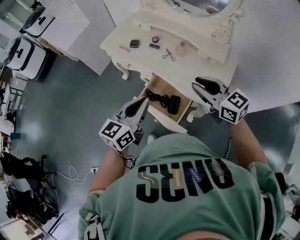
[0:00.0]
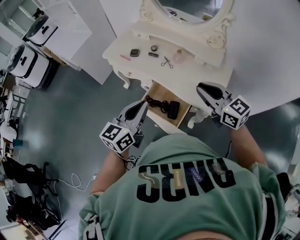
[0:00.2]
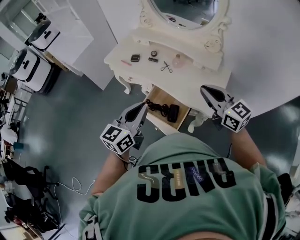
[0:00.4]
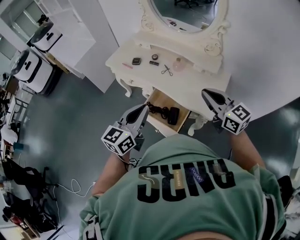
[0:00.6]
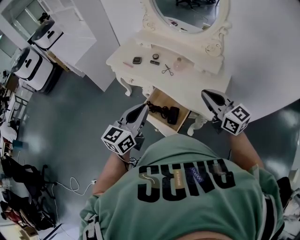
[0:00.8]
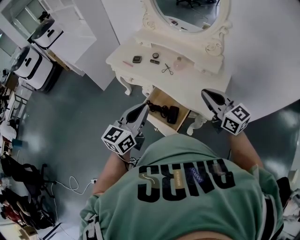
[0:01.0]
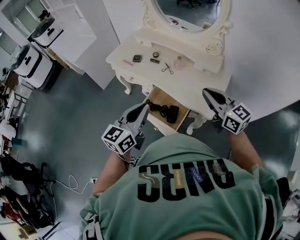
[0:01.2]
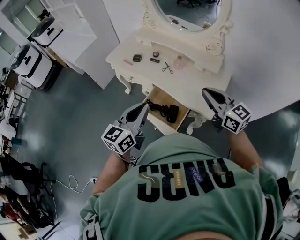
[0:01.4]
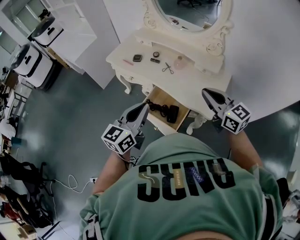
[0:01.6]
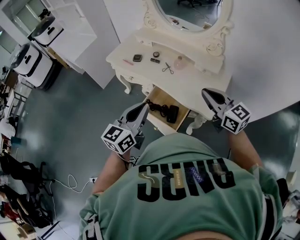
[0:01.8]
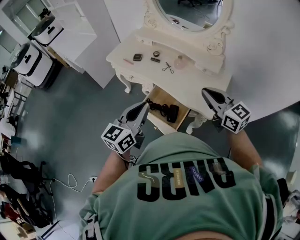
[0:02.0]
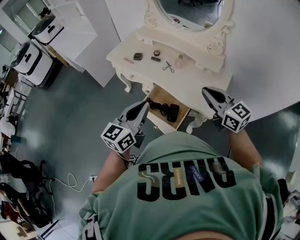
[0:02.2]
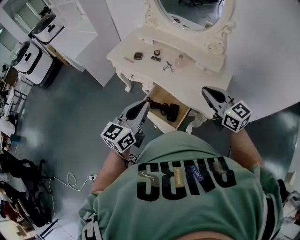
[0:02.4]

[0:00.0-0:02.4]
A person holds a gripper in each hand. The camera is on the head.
0:00.0 to 0:01.2: The right gripper goes approximately 5 cm to the right. Meanwhile the left gripper moves roughly 5 cm.
0:01.2 to 0:02.4: Both grippers stay about where they are.

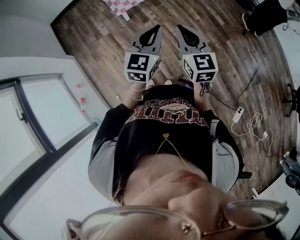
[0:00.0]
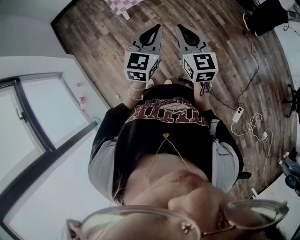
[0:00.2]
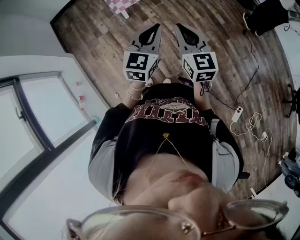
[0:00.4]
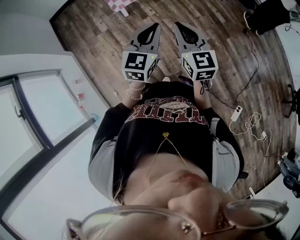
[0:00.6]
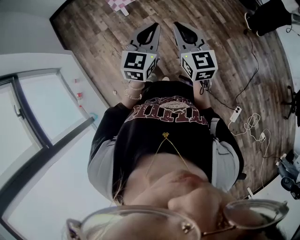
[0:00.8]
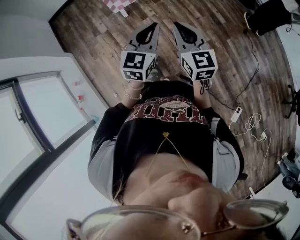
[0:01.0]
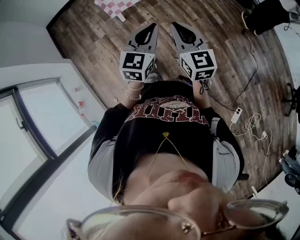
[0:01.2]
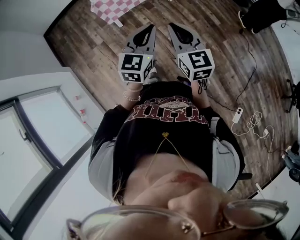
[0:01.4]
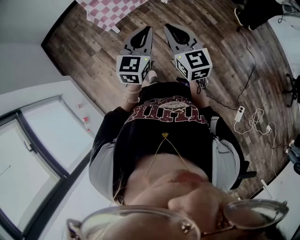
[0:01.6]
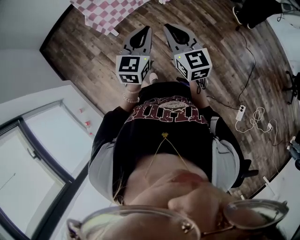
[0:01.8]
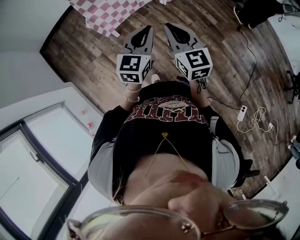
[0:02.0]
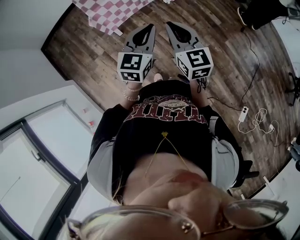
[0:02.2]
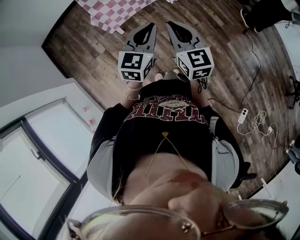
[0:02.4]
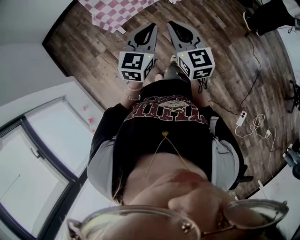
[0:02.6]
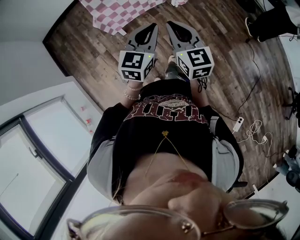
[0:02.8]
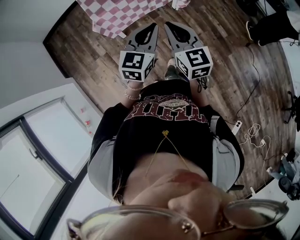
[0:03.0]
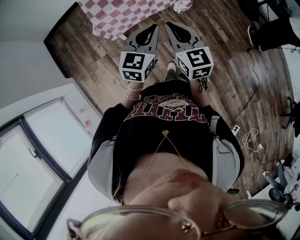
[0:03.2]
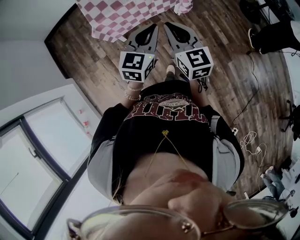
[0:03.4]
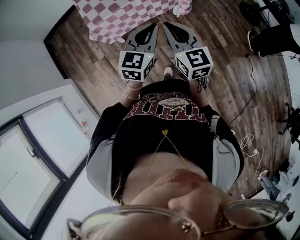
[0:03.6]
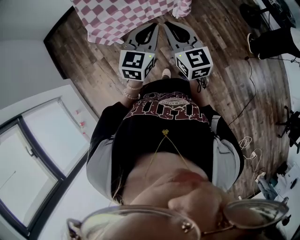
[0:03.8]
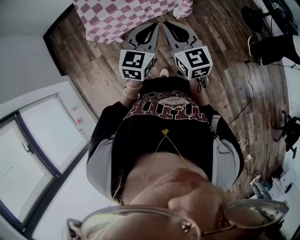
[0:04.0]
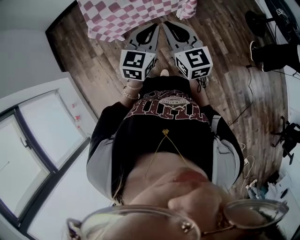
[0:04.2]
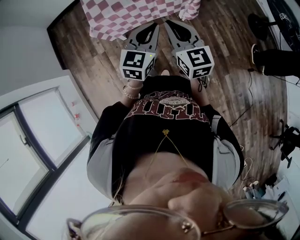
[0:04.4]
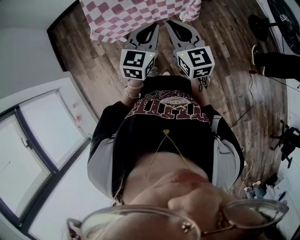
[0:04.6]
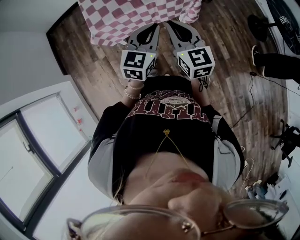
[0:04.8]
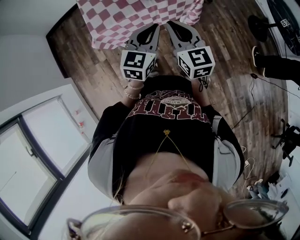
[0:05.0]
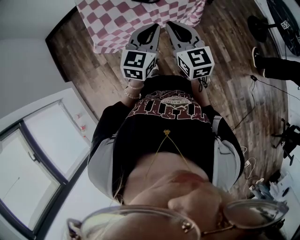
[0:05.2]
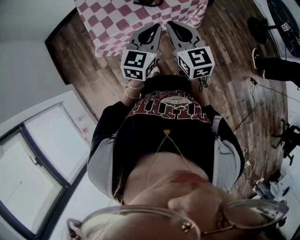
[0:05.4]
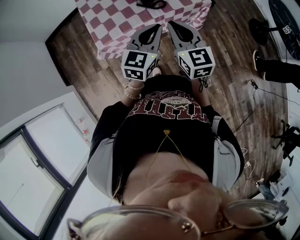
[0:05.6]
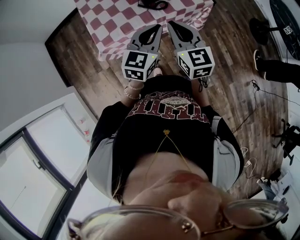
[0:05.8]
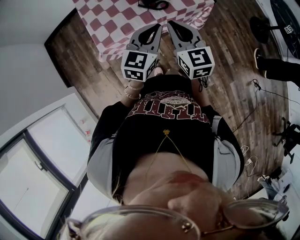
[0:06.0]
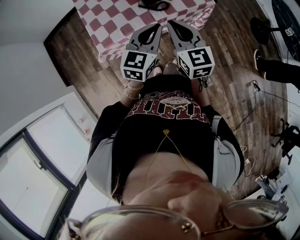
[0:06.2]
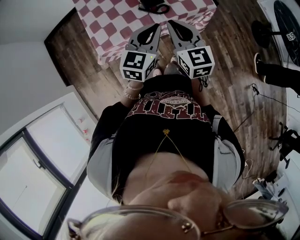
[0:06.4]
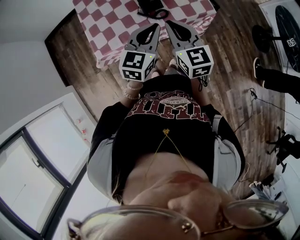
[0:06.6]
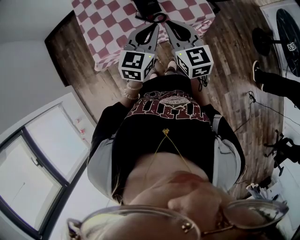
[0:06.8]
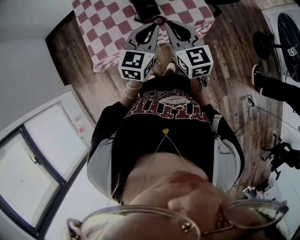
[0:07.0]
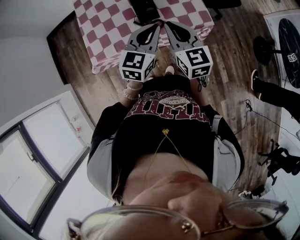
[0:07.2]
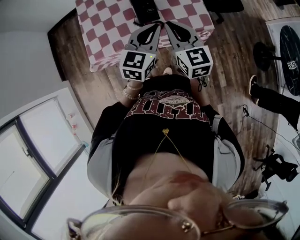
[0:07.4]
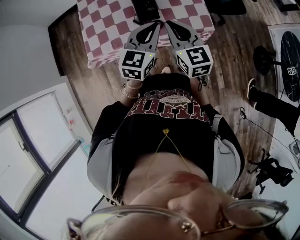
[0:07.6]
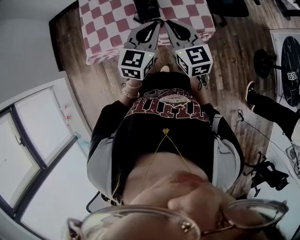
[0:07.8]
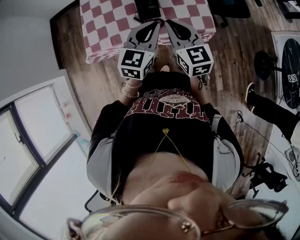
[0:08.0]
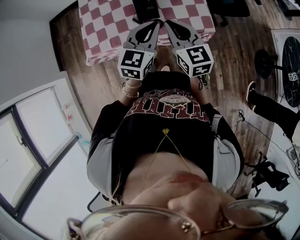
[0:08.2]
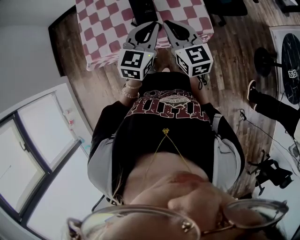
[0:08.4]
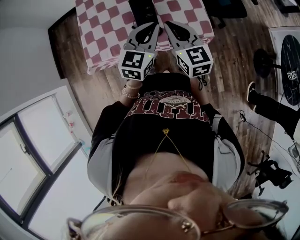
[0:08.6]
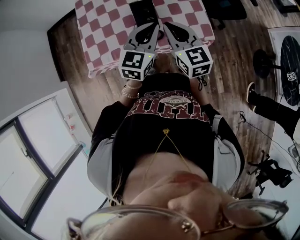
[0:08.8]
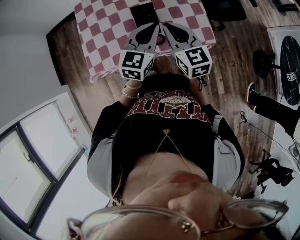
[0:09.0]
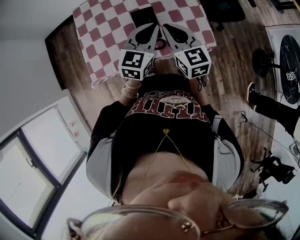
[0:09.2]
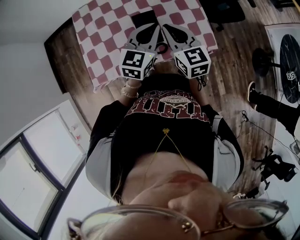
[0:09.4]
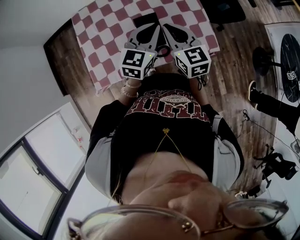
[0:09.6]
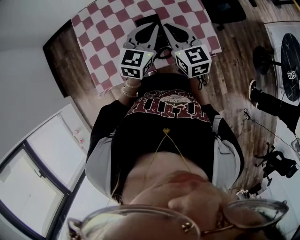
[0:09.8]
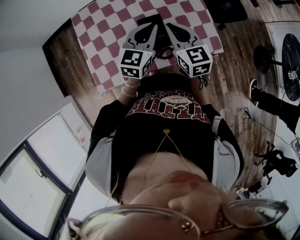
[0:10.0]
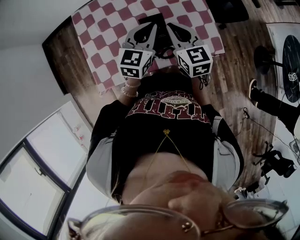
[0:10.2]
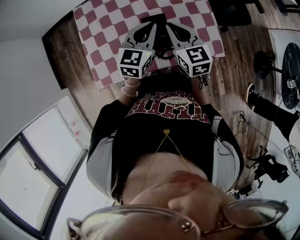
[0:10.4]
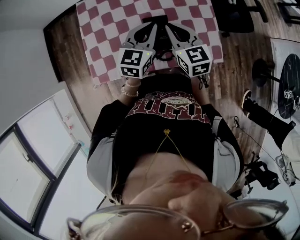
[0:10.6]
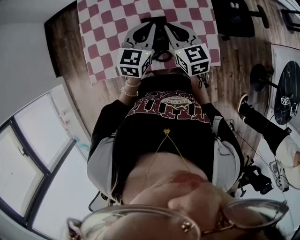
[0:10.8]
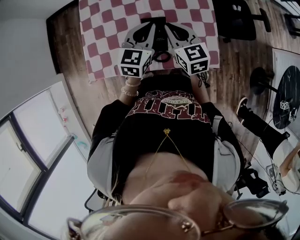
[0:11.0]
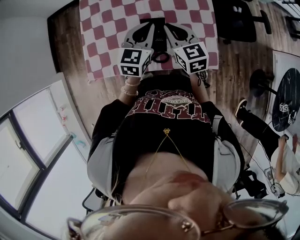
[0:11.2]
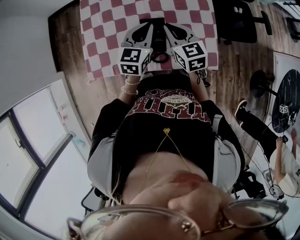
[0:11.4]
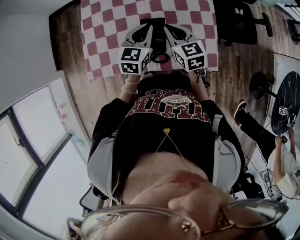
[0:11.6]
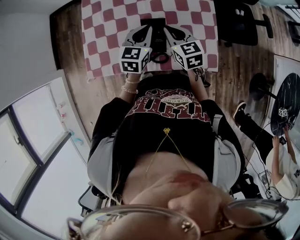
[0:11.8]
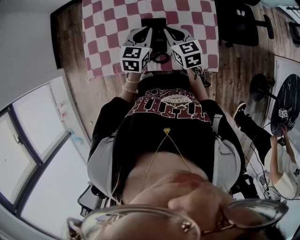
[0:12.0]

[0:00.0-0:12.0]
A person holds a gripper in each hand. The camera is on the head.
0:00.0 to 0:01.6: Both grippers travel together forward, roughly 15 cm.
0:01.6 to 0:03.0: The two grippers go approximately 20 cm forward.
0:03.0 to 0:04.4: The grippers both shift forward and to the right by roughly 15 cm.
0:04.4 to 0:06.0: Both grippers travel together forward and to the left, approximately 20 cm.
0:06.0 to 0:07.6: Both grippers move forward and to the right, about 15 cm.
0:07.6 to 0:09.0: The two grippers go some 10 cm forward.
0:09.0 to 0:10.4: Both grippers move forward and to the left, approximately 15 cm.
0:10.4 to 0:12.0: The two grippers go some 10 cm downward.

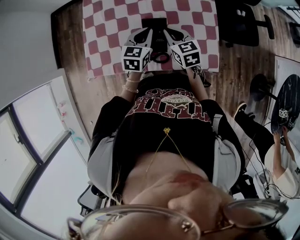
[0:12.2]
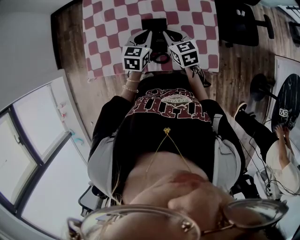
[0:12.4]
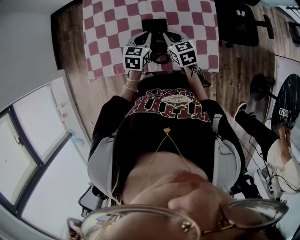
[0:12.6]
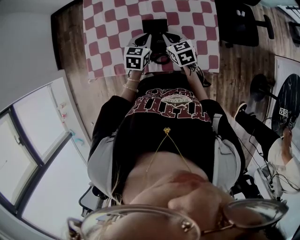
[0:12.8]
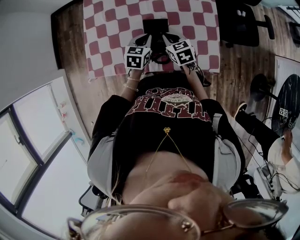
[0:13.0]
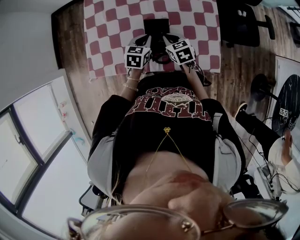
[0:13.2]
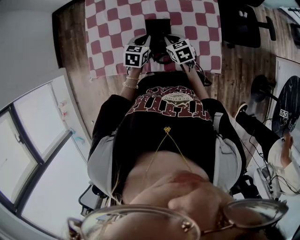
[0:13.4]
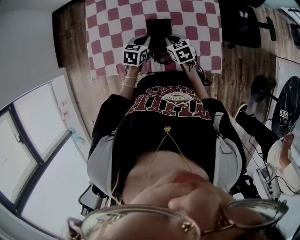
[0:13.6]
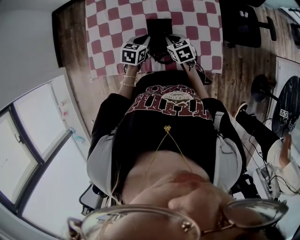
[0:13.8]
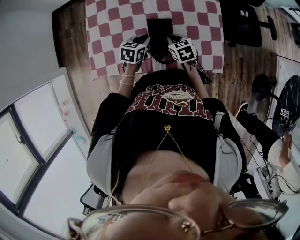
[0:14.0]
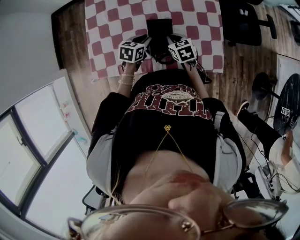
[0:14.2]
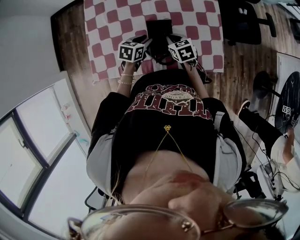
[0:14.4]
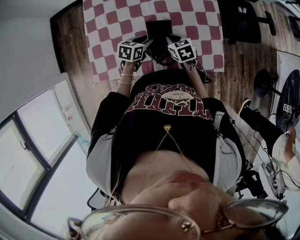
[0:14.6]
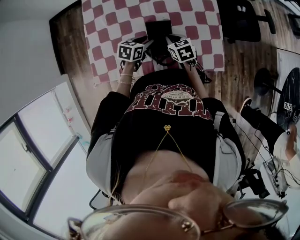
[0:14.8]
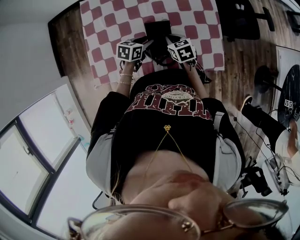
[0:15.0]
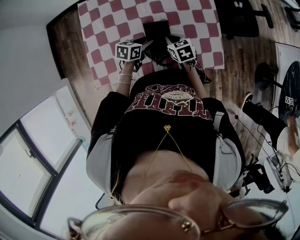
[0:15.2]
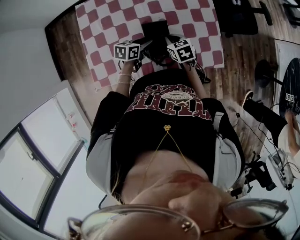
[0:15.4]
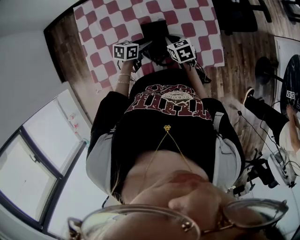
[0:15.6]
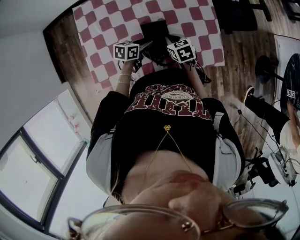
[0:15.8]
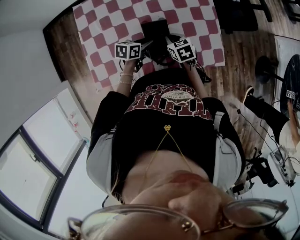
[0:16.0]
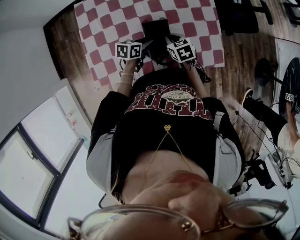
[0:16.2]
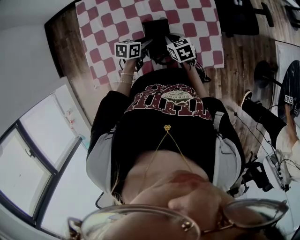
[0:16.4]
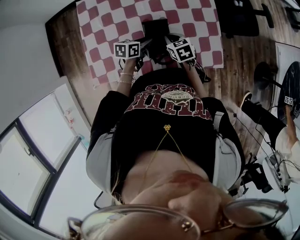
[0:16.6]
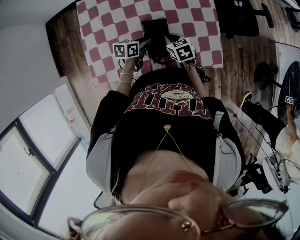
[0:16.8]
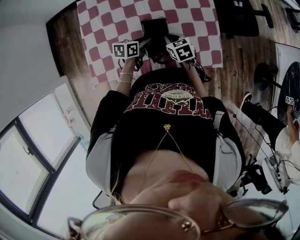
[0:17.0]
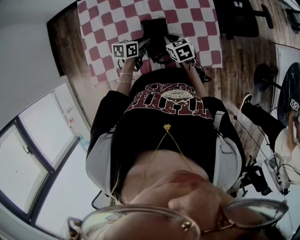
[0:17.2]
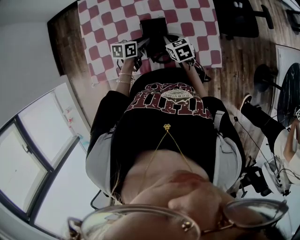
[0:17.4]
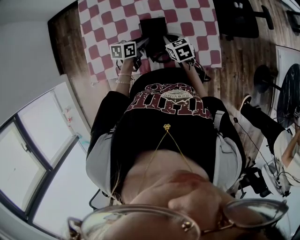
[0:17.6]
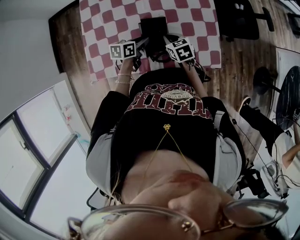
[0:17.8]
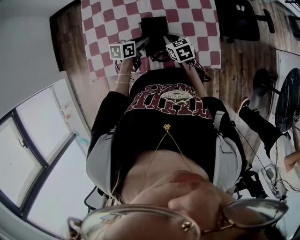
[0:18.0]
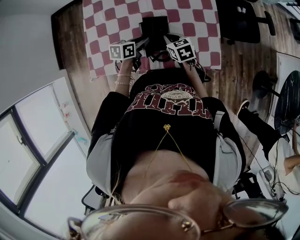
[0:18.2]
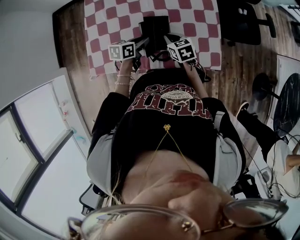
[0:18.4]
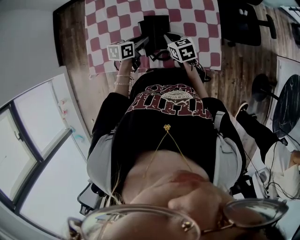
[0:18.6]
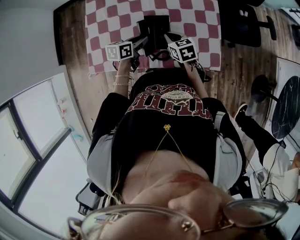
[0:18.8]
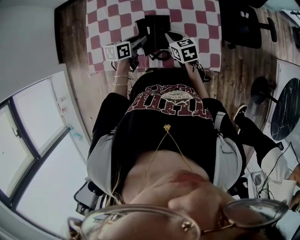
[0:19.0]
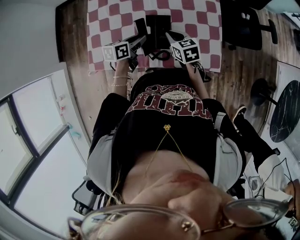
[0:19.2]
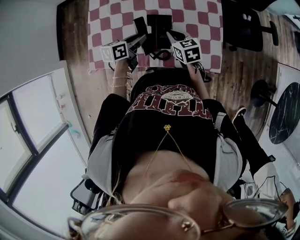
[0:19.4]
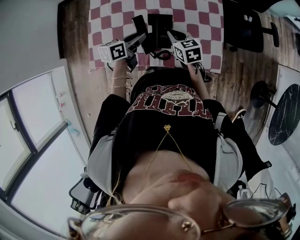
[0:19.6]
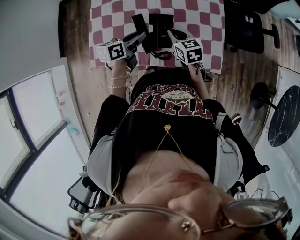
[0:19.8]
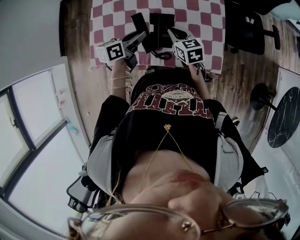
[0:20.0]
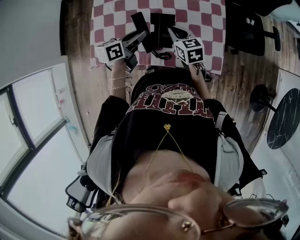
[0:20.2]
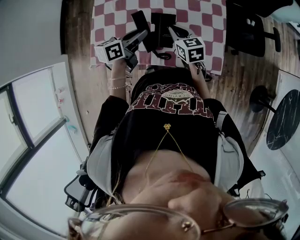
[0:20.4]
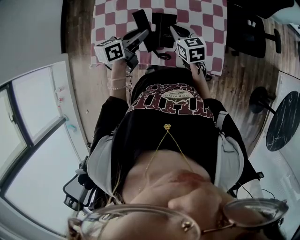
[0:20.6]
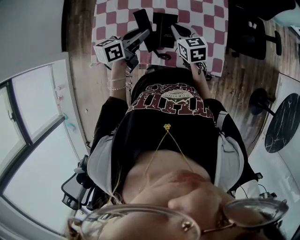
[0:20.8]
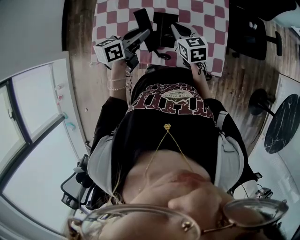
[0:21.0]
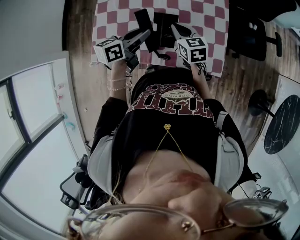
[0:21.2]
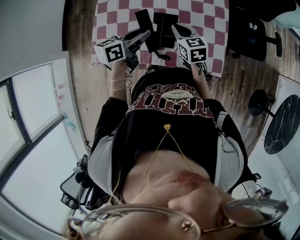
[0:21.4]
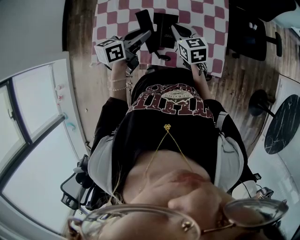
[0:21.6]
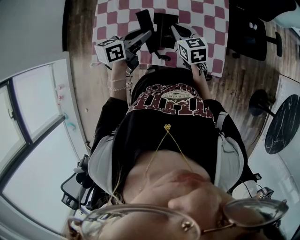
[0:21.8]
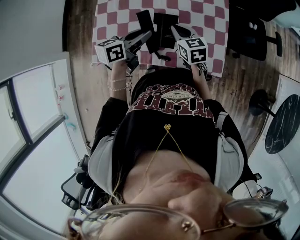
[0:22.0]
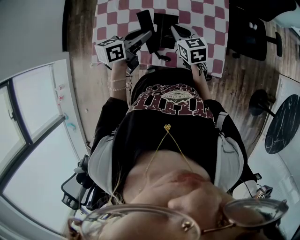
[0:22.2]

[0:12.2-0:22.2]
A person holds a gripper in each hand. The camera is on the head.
0:12.2 to 0:13.6: The two grippers go roughly 10 cm downward.
0:13.6 to 0:15.0: The left gripper opens up.
0:15.0 to 0:18.0: The grippers make only small movements.
0:18.0 to 0:19.4: The left gripper travels upward by approximately 5 cm.
0:19.4 to 0:20.8: The left gripper goes approximately 10 cm upward.
0:20.8 to 0:22.2: Neither gripper changes place.
